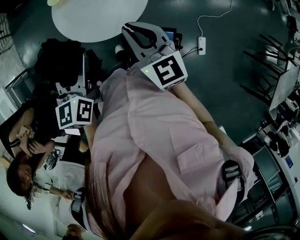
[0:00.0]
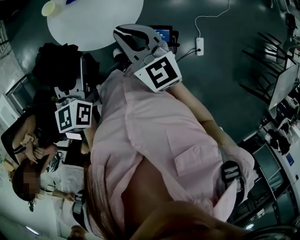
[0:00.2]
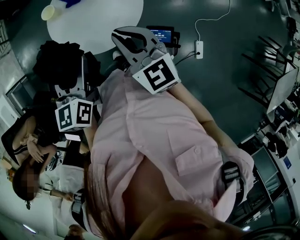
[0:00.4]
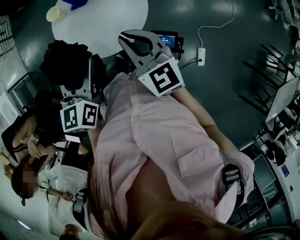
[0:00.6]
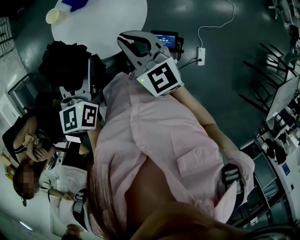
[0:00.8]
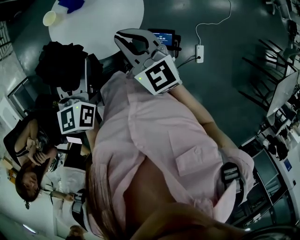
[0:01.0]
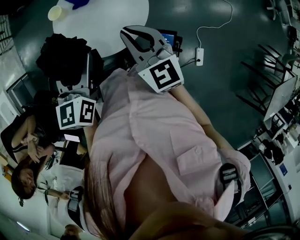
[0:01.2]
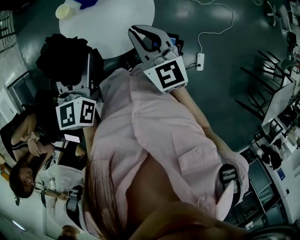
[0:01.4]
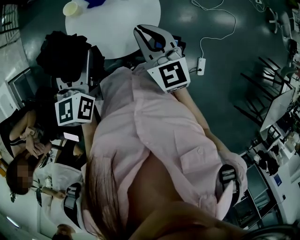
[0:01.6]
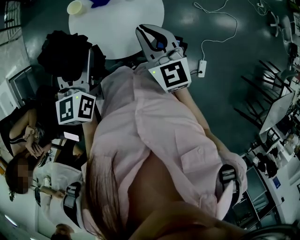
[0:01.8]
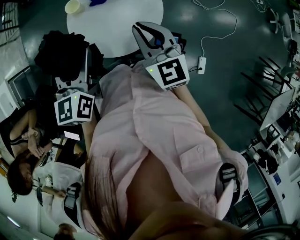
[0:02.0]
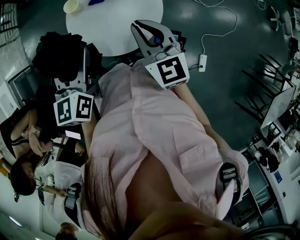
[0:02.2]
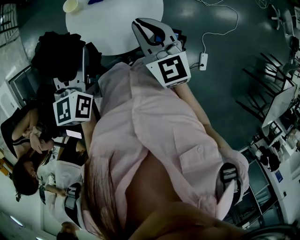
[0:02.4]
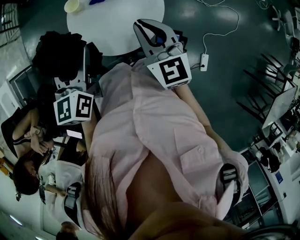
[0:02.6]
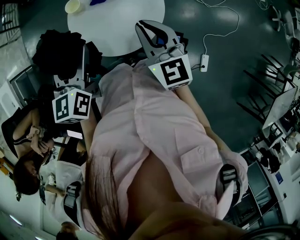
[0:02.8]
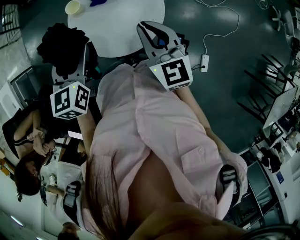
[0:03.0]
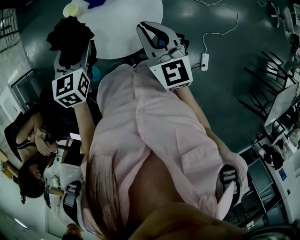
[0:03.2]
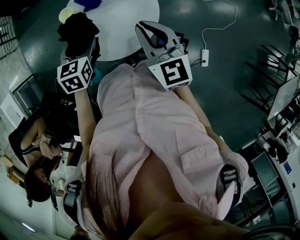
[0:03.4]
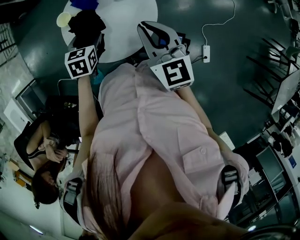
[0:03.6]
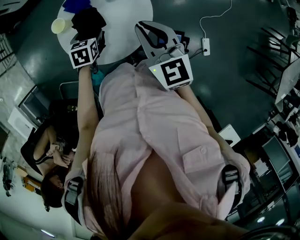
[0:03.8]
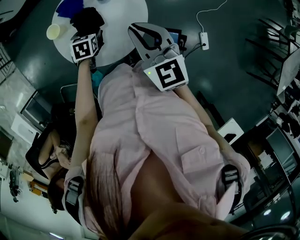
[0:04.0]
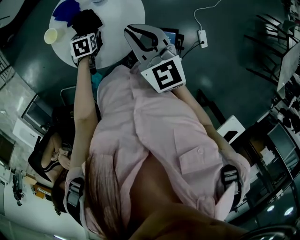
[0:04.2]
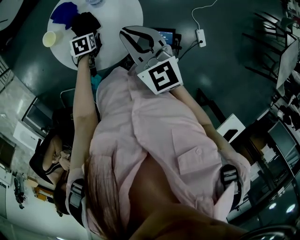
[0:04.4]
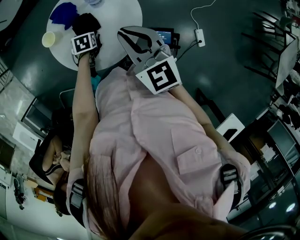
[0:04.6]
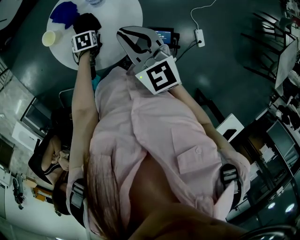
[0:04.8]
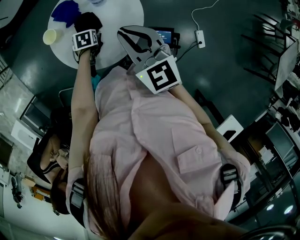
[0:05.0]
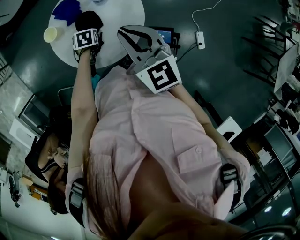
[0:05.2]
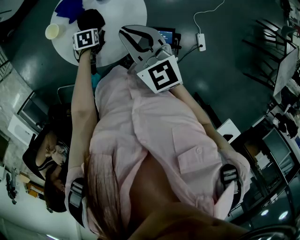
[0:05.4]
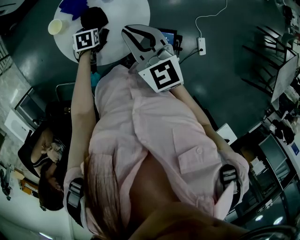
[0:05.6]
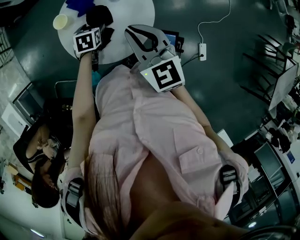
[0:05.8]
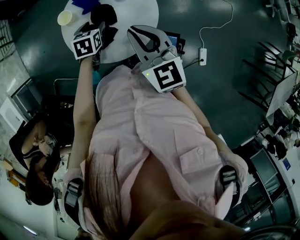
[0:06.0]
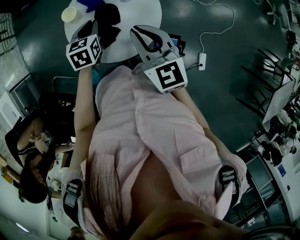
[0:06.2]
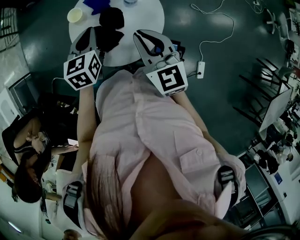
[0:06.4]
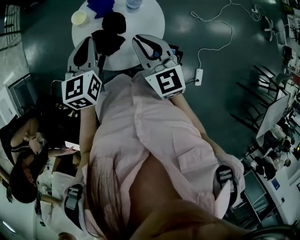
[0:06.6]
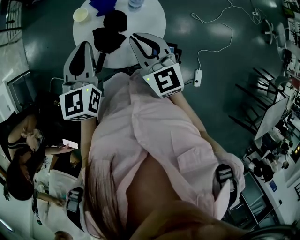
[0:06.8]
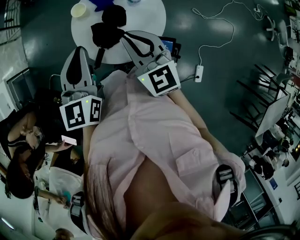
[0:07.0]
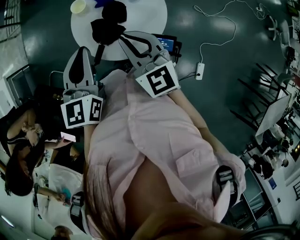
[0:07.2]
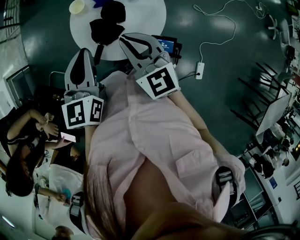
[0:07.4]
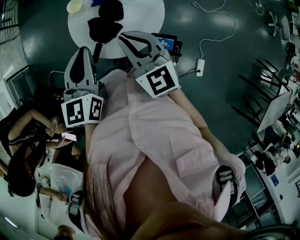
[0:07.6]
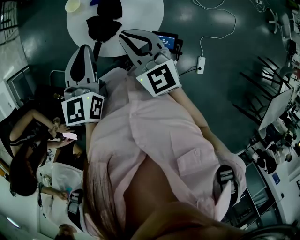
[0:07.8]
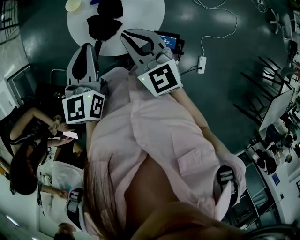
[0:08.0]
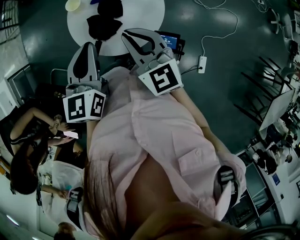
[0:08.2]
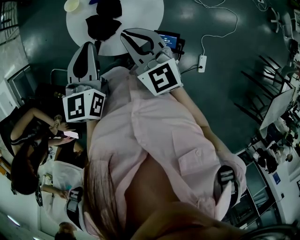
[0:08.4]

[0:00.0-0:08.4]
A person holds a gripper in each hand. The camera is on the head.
0:00.0 to 0:01.4: Both grippers move forward, about 10 cm.
0:01.4 to 0:02.8: The left gripper moves to the left, about 5 cm.
0:02.8 to 0:04.2: The left gripper heads downward, covering about 30 cm, and tips its fingers downward by some 40 degrees.
0:04.2 to 0:05.6: The grippers move only a little.
0:05.6 to 0:07.0: The left gripper moves upward, some 35 cm, tips its fingers upward by about 50 degrees, and closes its fingers; the right gripper goes about 5 cm to the left.
0:07.0 to 0:08.4: The left gripper moves some 5 cm.

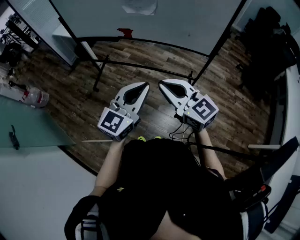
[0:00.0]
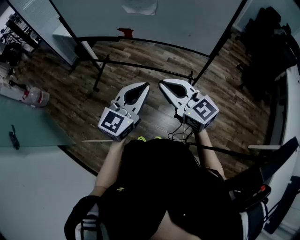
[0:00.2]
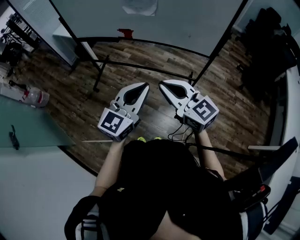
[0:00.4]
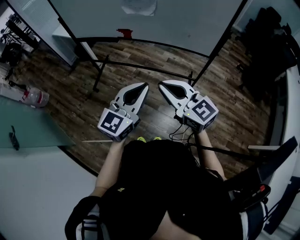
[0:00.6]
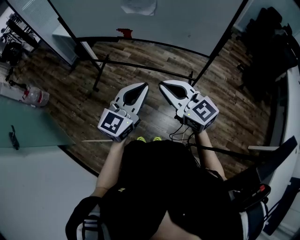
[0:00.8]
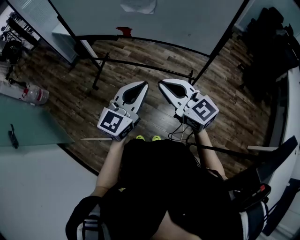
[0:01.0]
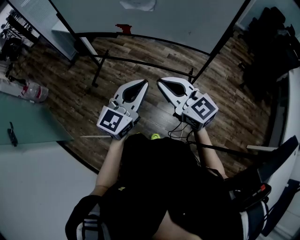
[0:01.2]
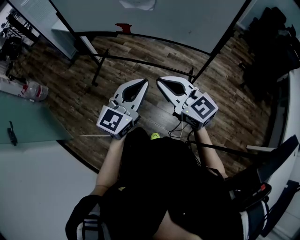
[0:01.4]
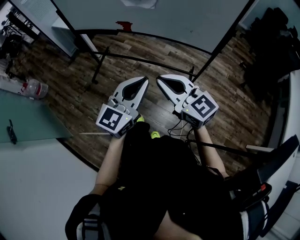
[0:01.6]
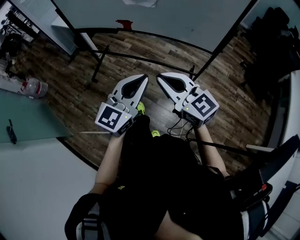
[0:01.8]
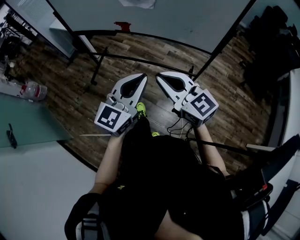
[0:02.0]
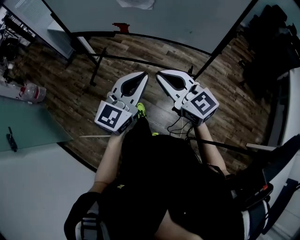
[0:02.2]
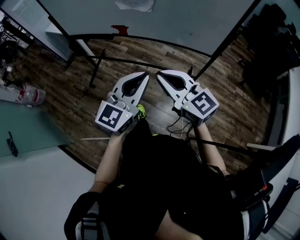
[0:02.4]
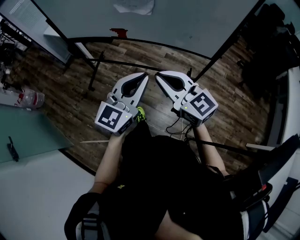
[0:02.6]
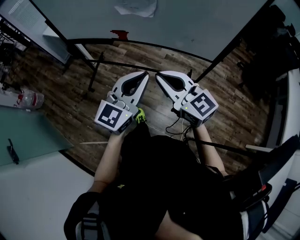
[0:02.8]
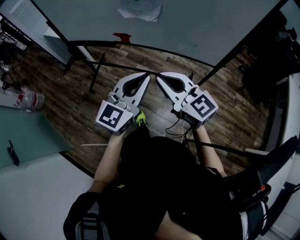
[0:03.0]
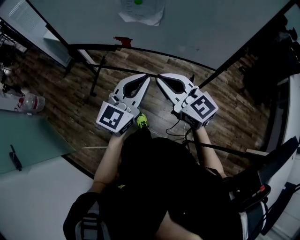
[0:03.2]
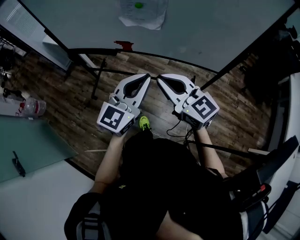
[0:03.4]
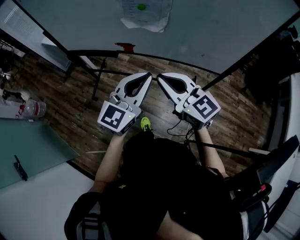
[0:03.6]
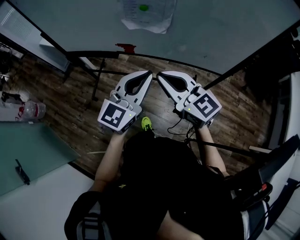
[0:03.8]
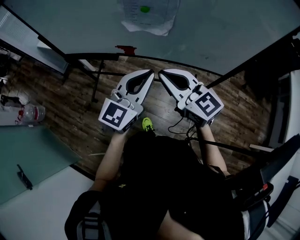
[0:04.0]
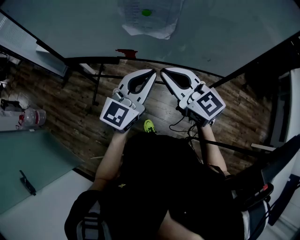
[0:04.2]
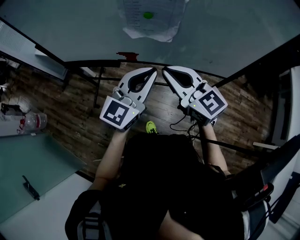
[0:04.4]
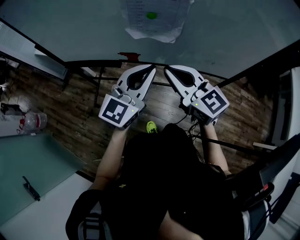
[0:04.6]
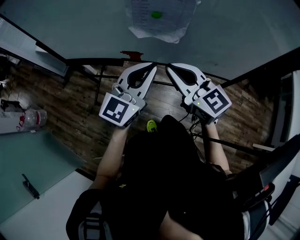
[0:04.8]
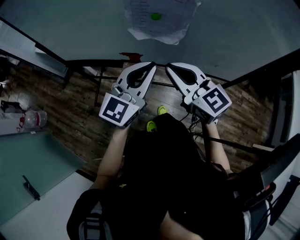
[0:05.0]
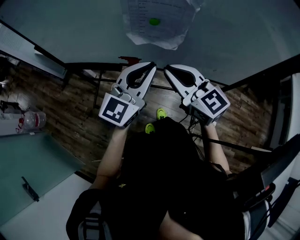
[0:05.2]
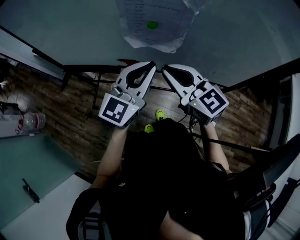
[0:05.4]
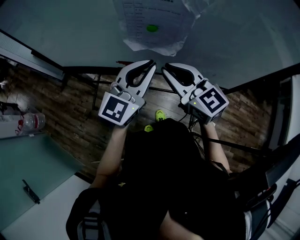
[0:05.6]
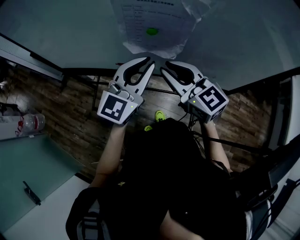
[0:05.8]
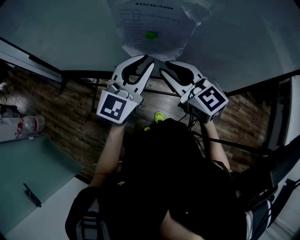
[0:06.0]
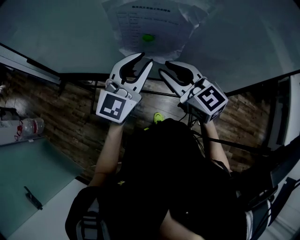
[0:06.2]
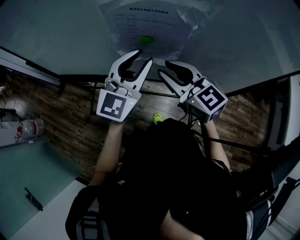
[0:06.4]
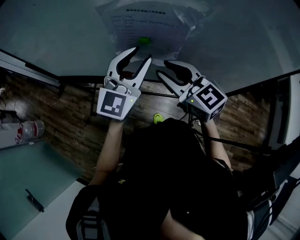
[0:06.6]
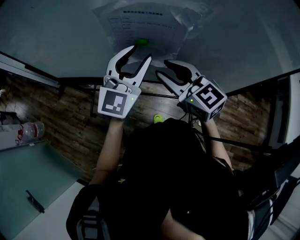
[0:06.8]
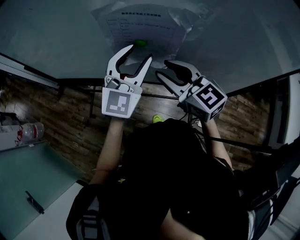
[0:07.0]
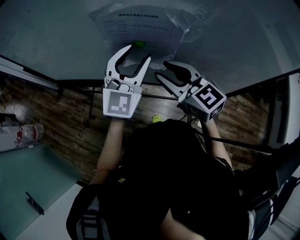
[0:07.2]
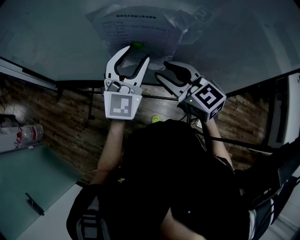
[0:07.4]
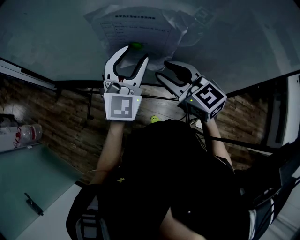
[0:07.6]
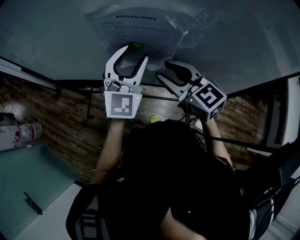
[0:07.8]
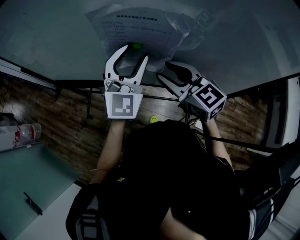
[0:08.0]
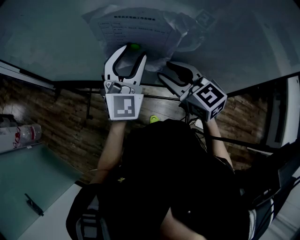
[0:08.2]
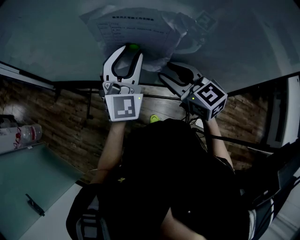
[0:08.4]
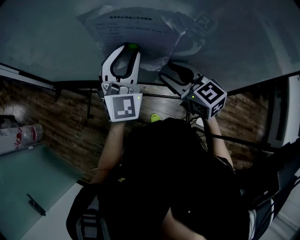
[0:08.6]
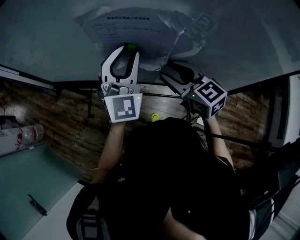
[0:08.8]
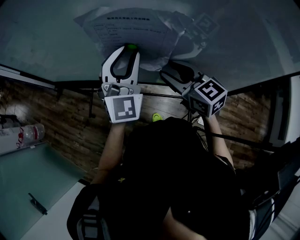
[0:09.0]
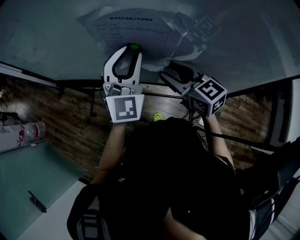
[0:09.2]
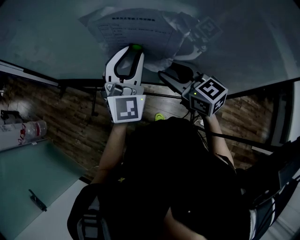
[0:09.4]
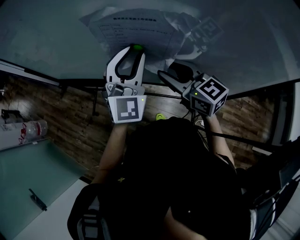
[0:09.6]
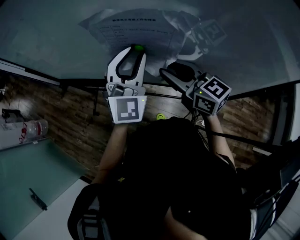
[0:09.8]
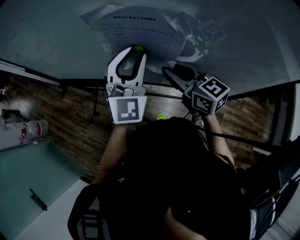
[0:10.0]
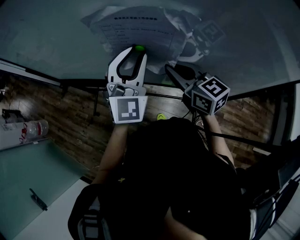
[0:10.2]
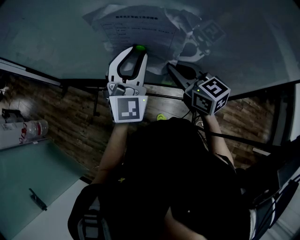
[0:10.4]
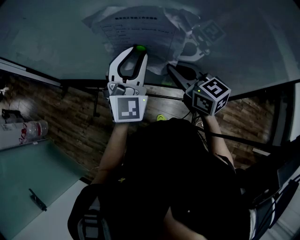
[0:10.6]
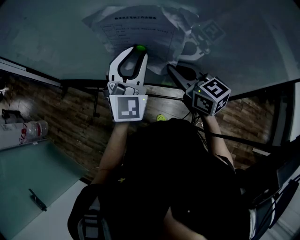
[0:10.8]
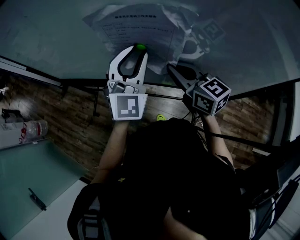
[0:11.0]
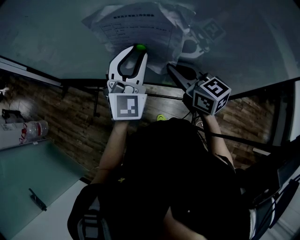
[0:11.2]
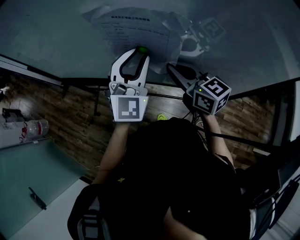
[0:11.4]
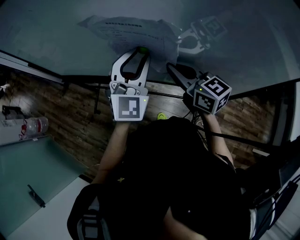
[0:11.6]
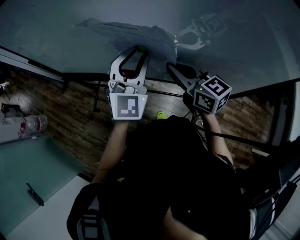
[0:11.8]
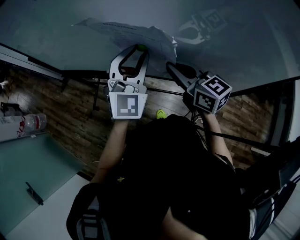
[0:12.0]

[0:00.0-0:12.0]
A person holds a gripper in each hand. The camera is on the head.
0:00.0 to 0:01.6: There are only small adjustments of the grippers.
0:01.6 to 0:03.0: The two grippers go approximately 15 cm forward.
0:03.0 to 0:04.4: Both grippers travel together forward, approximately 15 cm.
0:04.4 to 0:06.0: The grippers both shift forward by about 10 cm.
0:06.0 to 0:07.6: The left gripper is displaced forward by approximately 5 cm, swivels some 20 degrees, and opens its fingers.
0:07.6 to 0:09.0: The grippers move only a little.
0:09.0 to 0:10.4: The right gripper closes.
0:10.4 to 0:12.0: The grippers stay close to where they were, moving slightly.

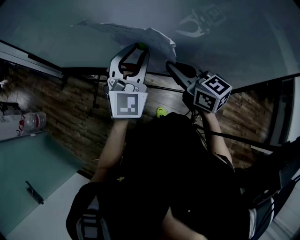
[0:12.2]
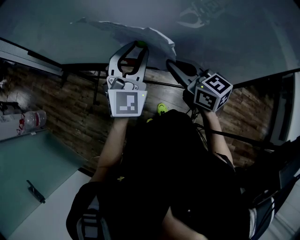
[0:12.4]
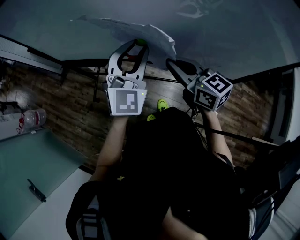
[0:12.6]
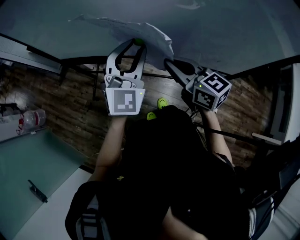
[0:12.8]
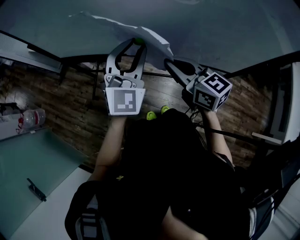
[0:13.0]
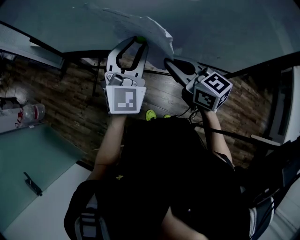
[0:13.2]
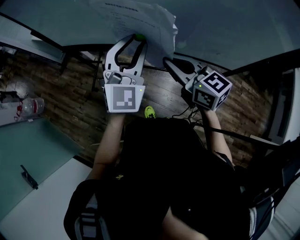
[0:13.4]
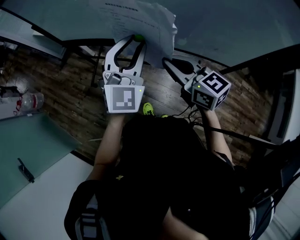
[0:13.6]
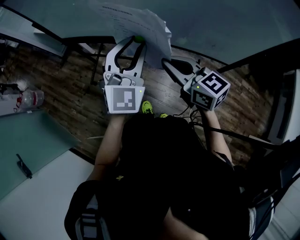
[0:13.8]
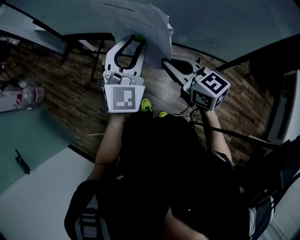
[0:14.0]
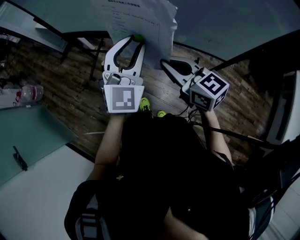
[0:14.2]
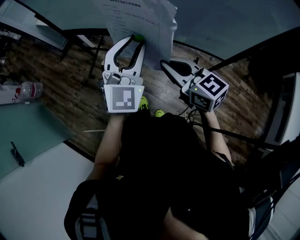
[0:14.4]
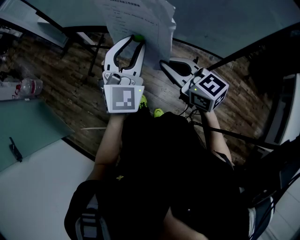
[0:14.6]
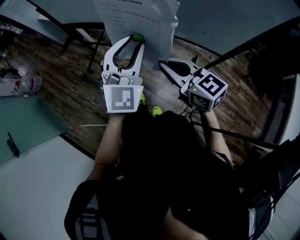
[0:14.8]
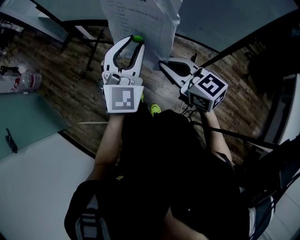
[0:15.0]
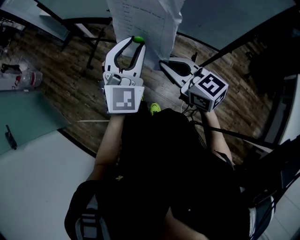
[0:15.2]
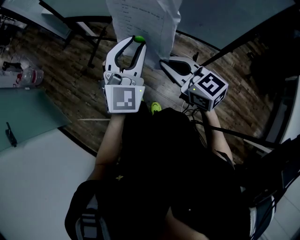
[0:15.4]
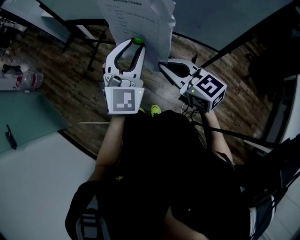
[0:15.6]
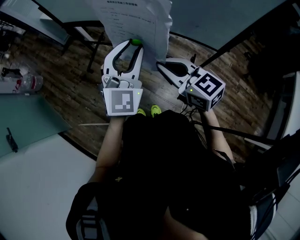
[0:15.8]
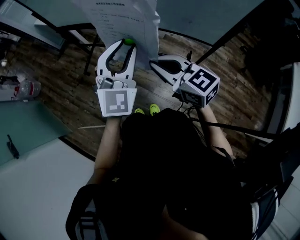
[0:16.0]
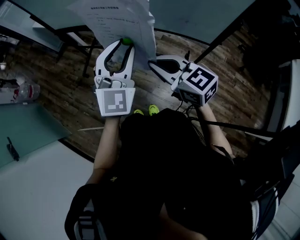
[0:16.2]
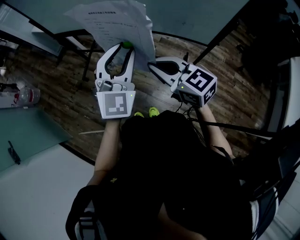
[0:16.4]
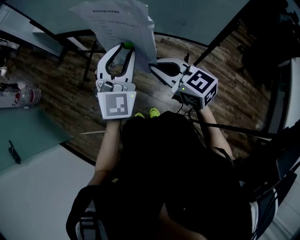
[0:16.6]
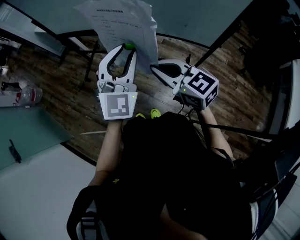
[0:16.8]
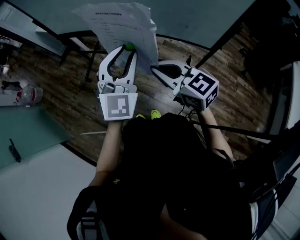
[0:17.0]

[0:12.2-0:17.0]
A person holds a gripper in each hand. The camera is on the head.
0:12.2 to 0:13.8: Both grippers travel together backward, roughly 15 cm.
0:13.8 to 0:15.4: Both grippers travel together backward, approximately 15 cm.
0:15.4 to 0:17.0: The grippers make only small movements.
